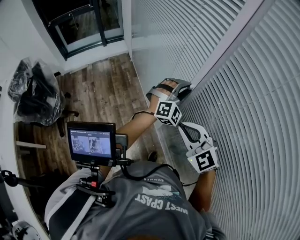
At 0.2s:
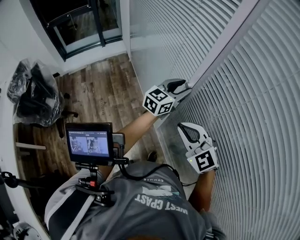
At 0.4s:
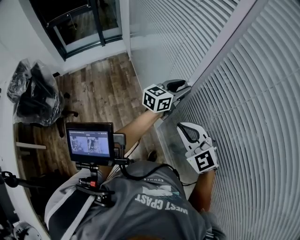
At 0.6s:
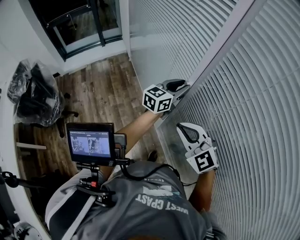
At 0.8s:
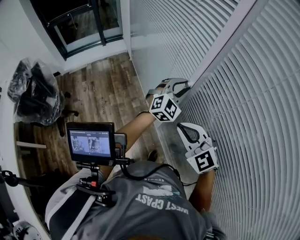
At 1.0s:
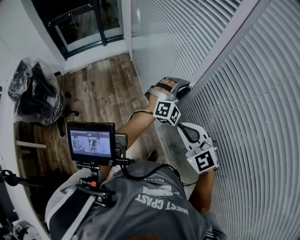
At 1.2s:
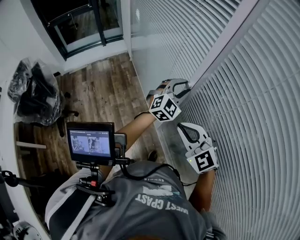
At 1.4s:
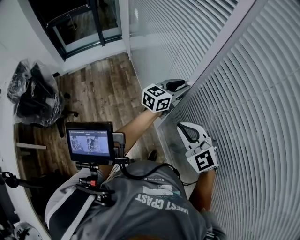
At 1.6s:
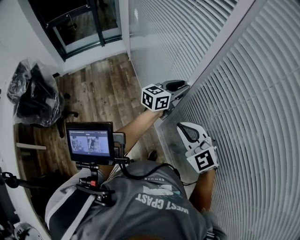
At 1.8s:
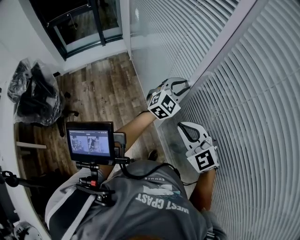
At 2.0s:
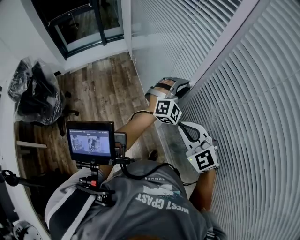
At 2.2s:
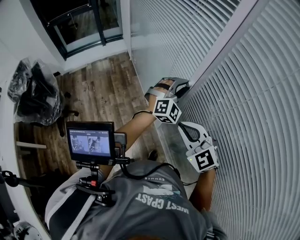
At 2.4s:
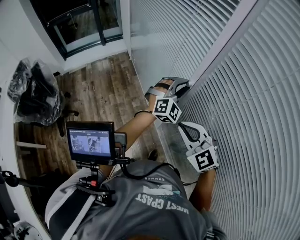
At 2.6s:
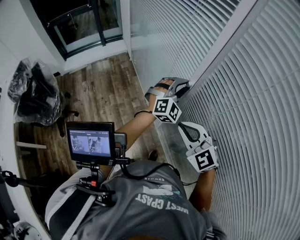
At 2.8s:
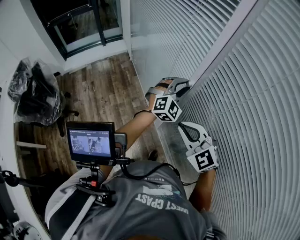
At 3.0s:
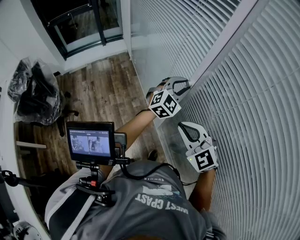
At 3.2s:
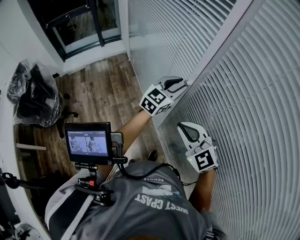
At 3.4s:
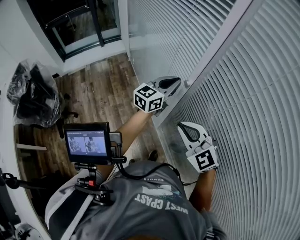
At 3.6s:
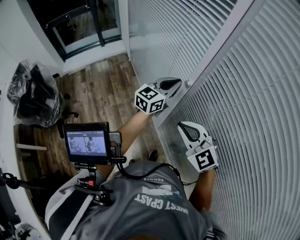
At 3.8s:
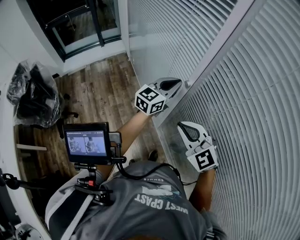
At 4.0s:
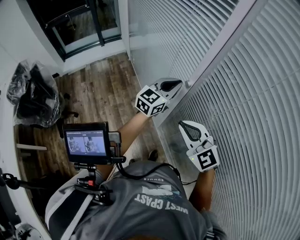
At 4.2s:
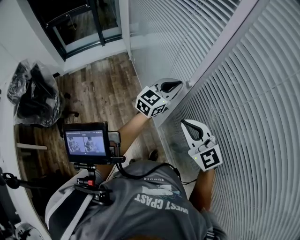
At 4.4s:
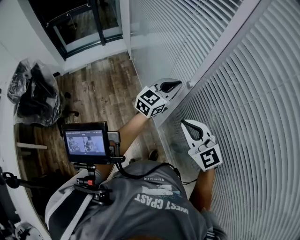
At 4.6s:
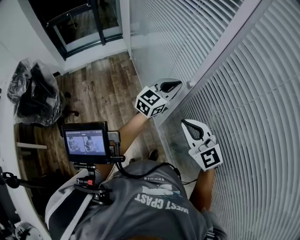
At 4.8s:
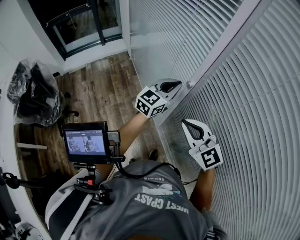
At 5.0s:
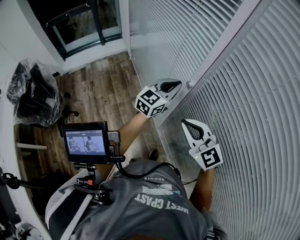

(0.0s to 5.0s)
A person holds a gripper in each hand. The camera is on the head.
0.0s - 1.6s: The left gripper twists approximately 80 degrees counterclockwise, seen from behind.
1.6s - 3.4s: The left gripper closes its fingers.
3.4s - 5.0s: The grippers stay close to where they were, moving slightly.

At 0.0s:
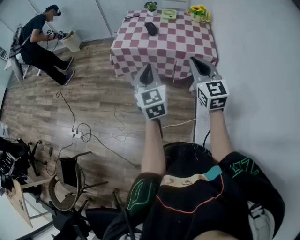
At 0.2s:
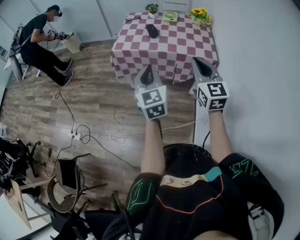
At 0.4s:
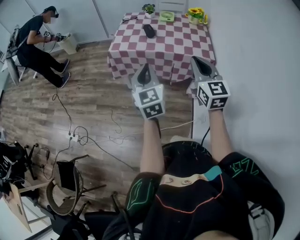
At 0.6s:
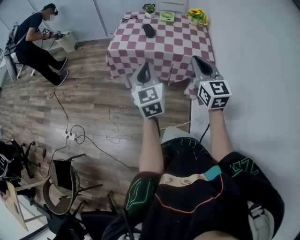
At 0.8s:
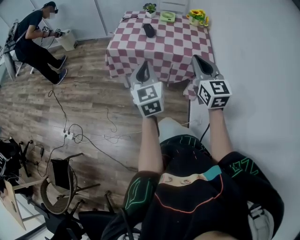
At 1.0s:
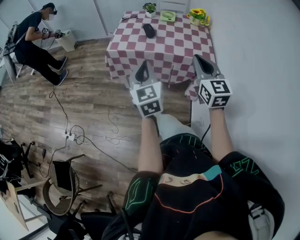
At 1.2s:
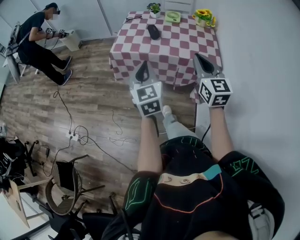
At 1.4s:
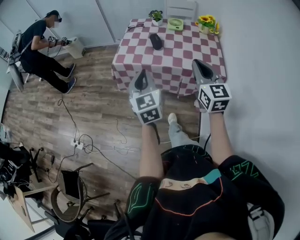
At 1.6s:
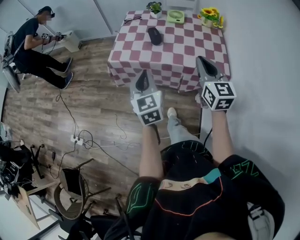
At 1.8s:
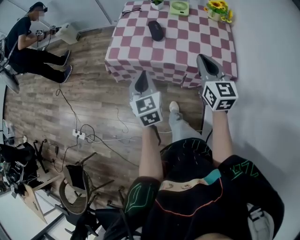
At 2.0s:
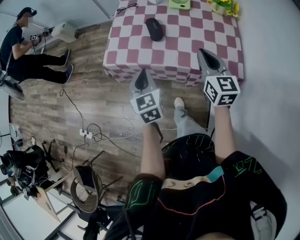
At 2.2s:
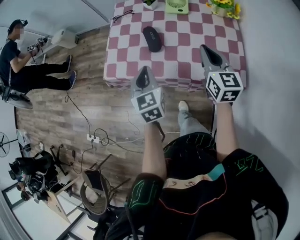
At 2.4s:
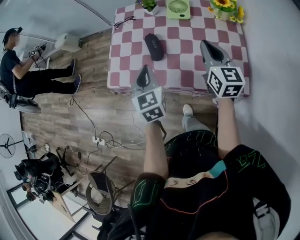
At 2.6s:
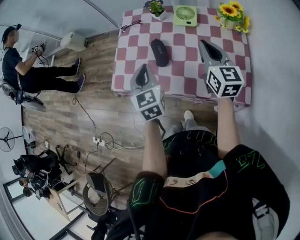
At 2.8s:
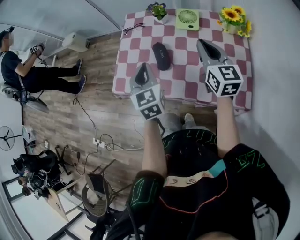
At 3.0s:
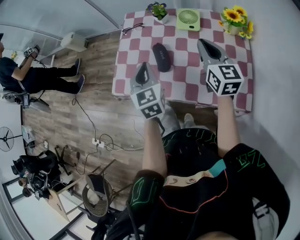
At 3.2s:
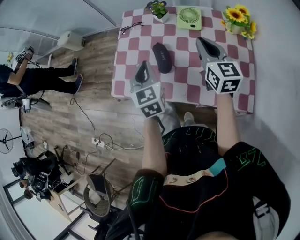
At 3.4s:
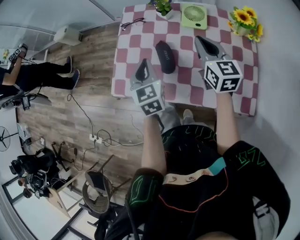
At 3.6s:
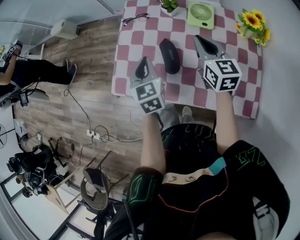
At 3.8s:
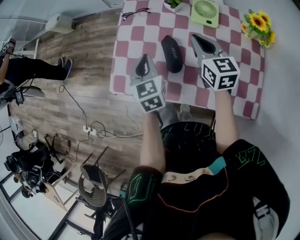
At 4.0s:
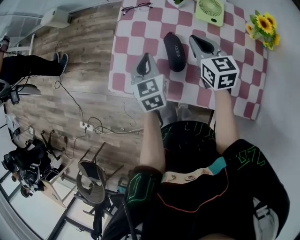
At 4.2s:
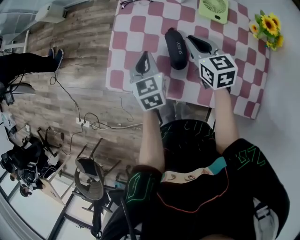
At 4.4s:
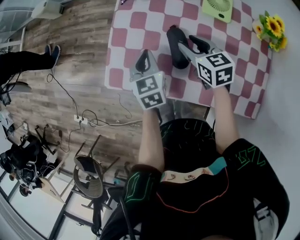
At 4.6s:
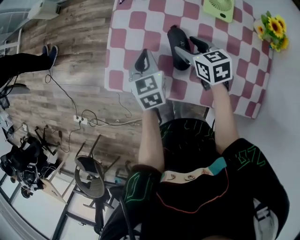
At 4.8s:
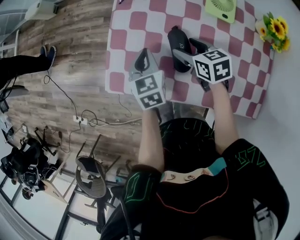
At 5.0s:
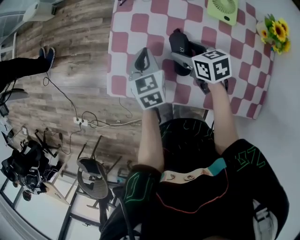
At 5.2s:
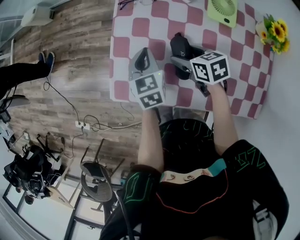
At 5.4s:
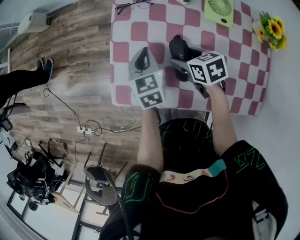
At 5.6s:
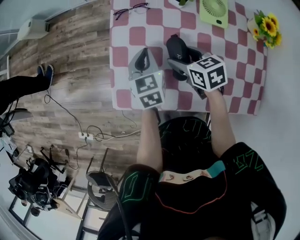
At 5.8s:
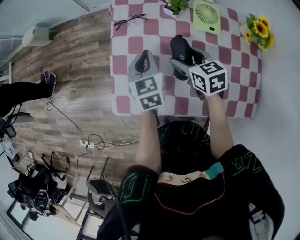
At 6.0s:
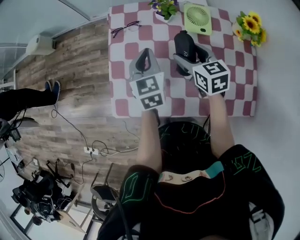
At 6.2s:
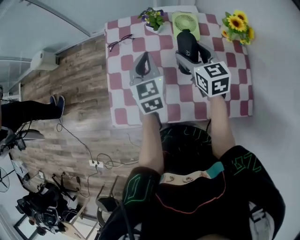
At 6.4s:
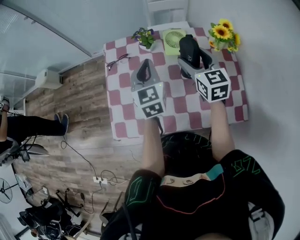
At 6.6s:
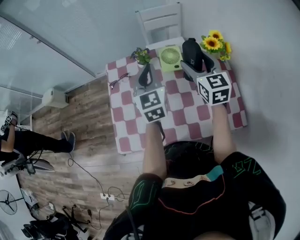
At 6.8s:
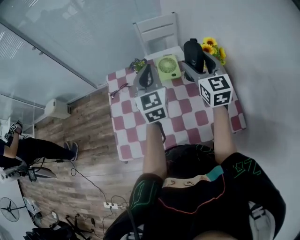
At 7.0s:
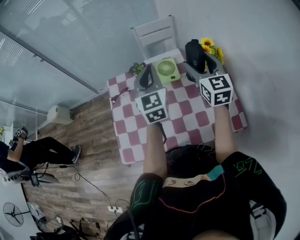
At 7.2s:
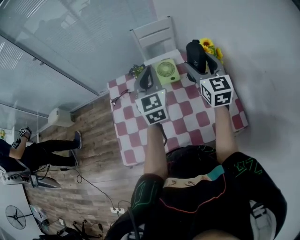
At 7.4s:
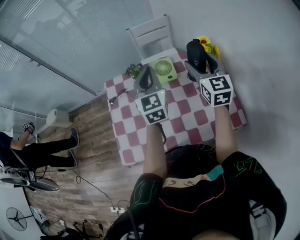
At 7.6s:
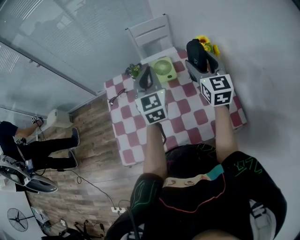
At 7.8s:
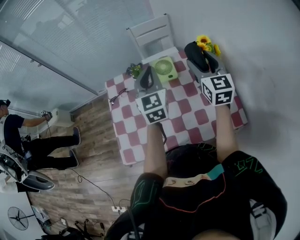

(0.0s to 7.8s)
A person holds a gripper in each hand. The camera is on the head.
0.0s - 1.6s: Both grippers move forward, roughly 20 cm.
1.6s - 3.2s: Both grippers travel together forward, some 30 cm.
3.2s - 4.6s: The left gripper shifts approximately 15 cm downward, forward and to the left. The right gripper heads downward, to the left and forward, covering approximately 25 cm, points its fingers about 30 degrees further downward, and opens.
4.6s - 6.2s: The right gripper goes about 10 cm upward, and changes its angle by approximately 30 degrees. The left gripper changes place by about 15 cm, and swivels roughly 20 degrees.
6.2s - 7.8s: The two grippers go approximately 20 cm to the right and upward. The right gripper turns by roughly 30 degrees. Meanwhile the left gripper rotates some 20 degrees.

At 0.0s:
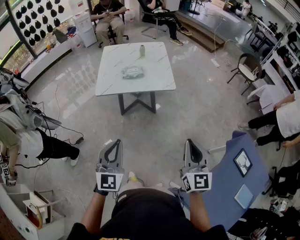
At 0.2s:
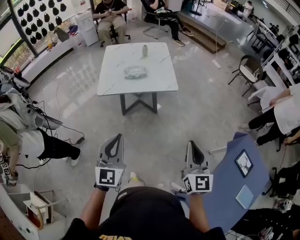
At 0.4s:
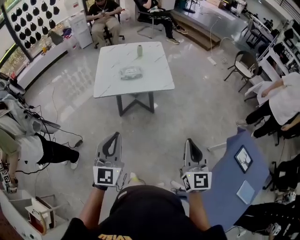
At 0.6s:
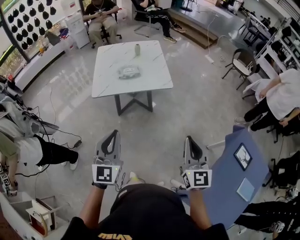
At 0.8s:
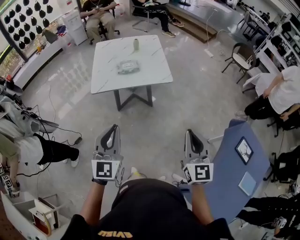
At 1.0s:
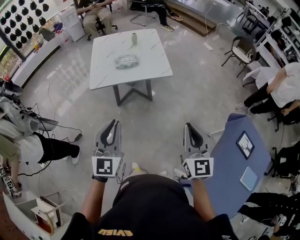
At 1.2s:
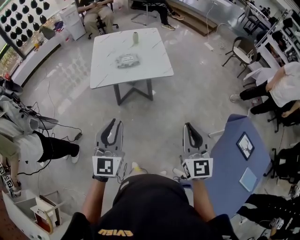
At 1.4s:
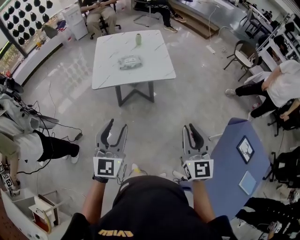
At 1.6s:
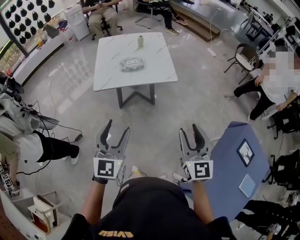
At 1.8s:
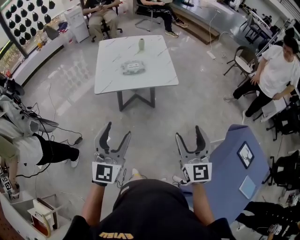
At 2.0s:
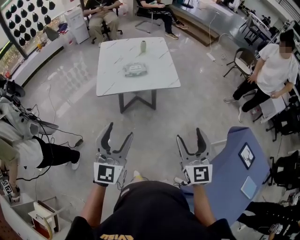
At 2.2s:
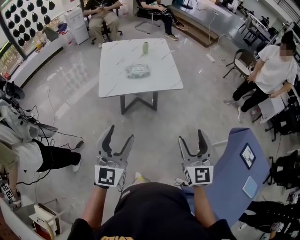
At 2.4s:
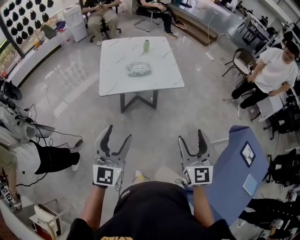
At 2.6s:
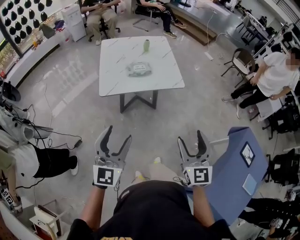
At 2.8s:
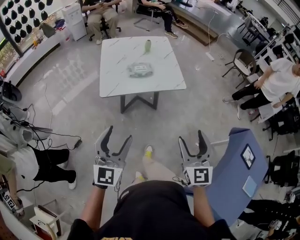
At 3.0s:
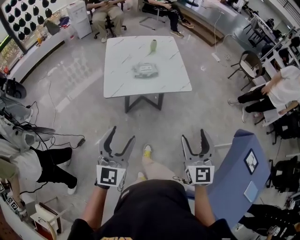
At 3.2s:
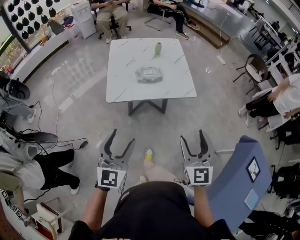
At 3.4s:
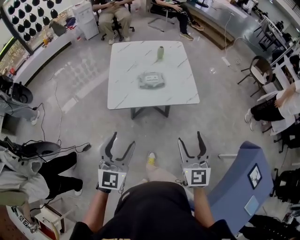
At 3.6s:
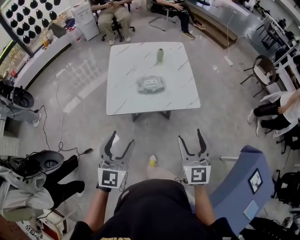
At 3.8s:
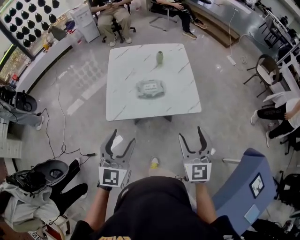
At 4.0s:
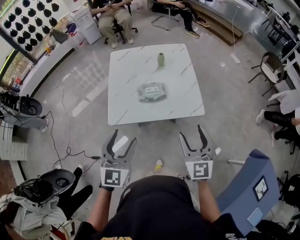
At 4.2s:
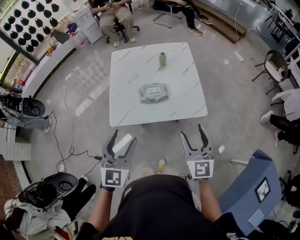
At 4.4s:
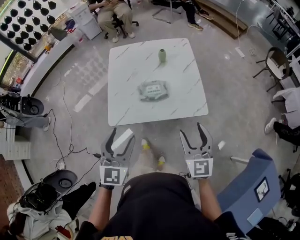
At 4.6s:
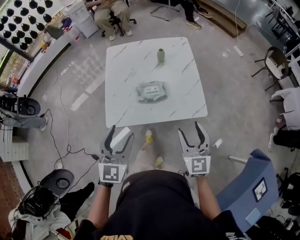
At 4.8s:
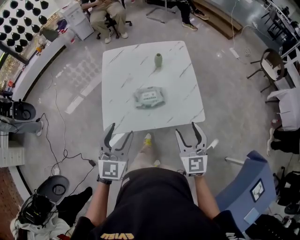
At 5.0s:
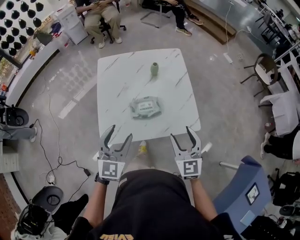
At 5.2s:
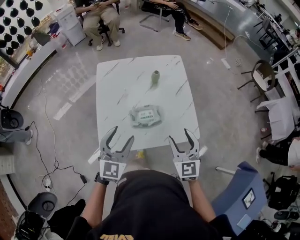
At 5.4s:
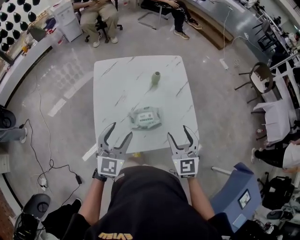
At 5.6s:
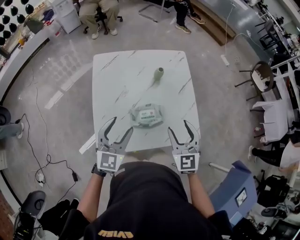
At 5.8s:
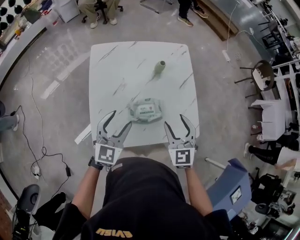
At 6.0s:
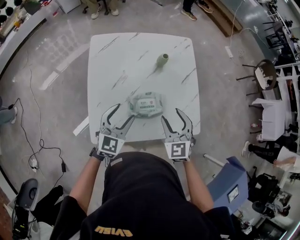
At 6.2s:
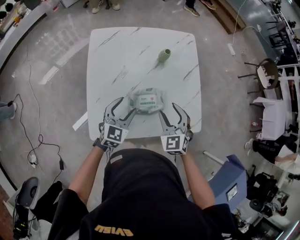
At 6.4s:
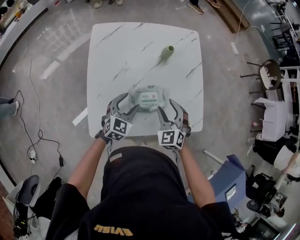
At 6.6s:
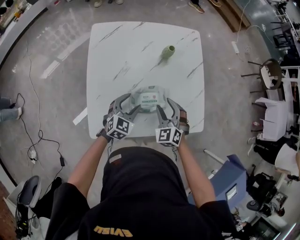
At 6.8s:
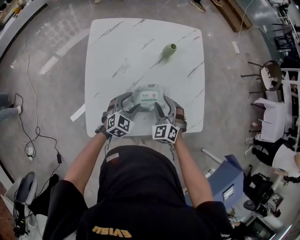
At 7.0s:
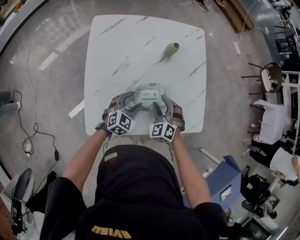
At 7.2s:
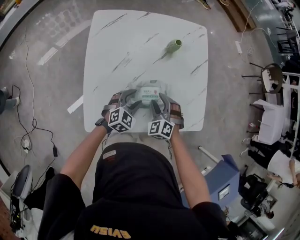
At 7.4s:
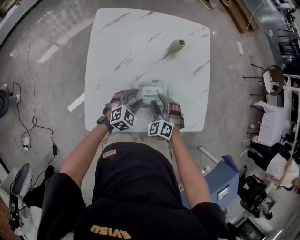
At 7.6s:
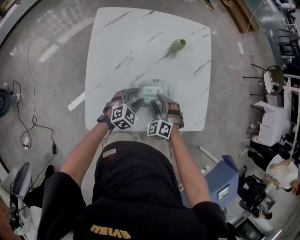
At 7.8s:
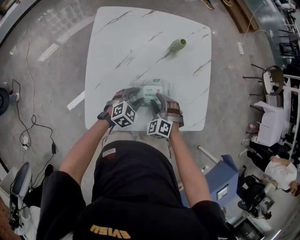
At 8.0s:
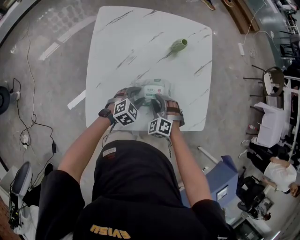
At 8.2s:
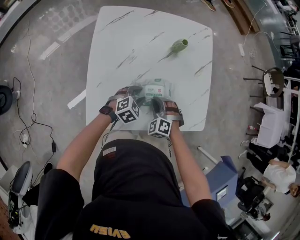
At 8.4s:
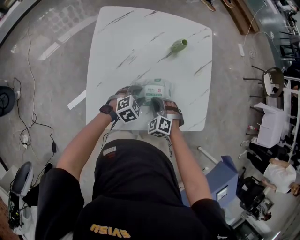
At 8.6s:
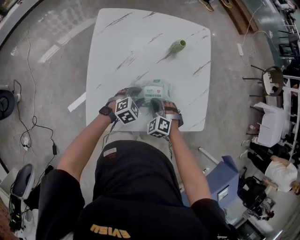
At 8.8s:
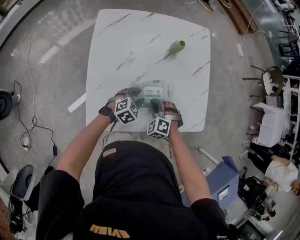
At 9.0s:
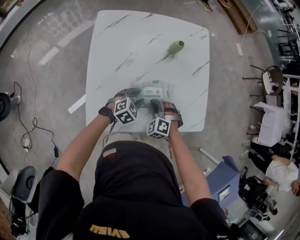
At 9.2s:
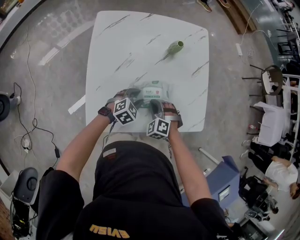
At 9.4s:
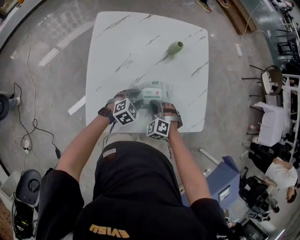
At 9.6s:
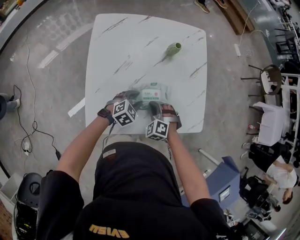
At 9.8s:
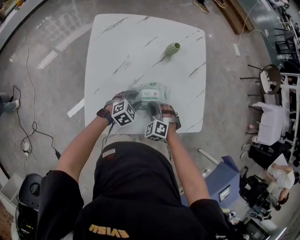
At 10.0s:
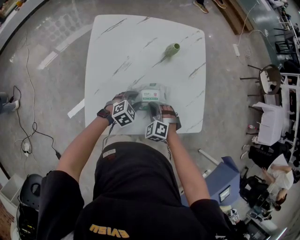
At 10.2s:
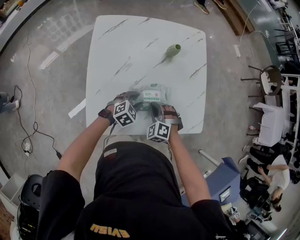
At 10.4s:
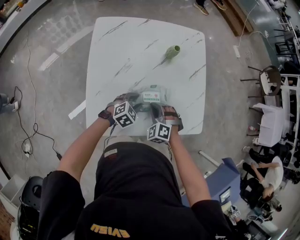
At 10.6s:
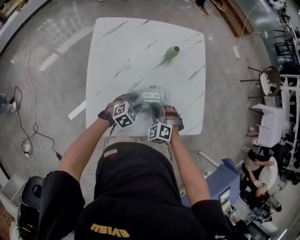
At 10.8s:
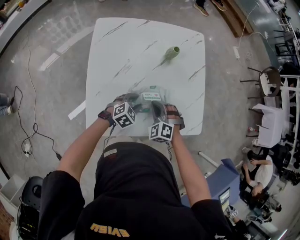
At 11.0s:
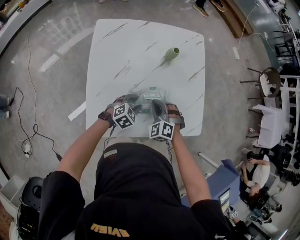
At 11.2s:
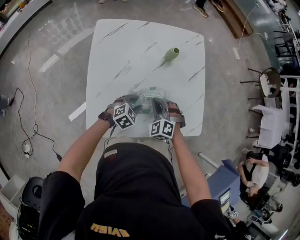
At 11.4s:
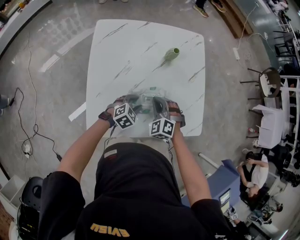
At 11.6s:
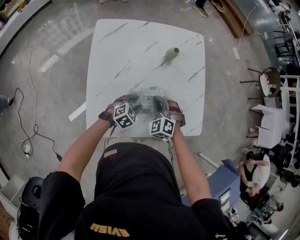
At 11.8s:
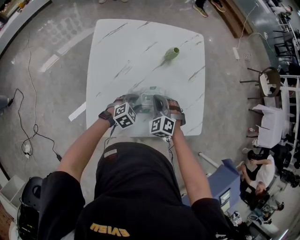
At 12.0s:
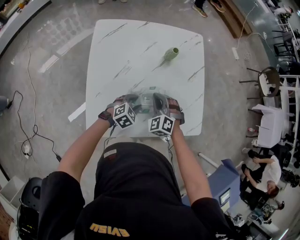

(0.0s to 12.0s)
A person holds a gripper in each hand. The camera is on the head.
0.0s - 1.6s: The left gripper shifts about 10 cm forward and to the left, and opens up; the right gripper moves to the left, approximately 10 cm, and opens up.
1.6s - 3.0s: The two grippers go roughly 15 cm to the left and forward.
3.0s - 4.4s: The two grippers go roughly 30 cm forward.
4.4s - 6.0s: The right gripper shifts some 30 cm forward, to the left and downward, and swivels about 30 degrees, while the left gripper shifts approximately 35 cm forward and downward.
6.0s - 7.6s: Both grippers travel together downward, some 20 cm. The right gripper swivels some 30 degrees, while the left gripper swivels some 30 degrees.
7.6s - 9.0s: The right gripper closes.
9.0s - 10.4s: The grippers stay close to where they were, moving slightly.
10.4s - 12.0s: The right gripper travels forward by roughly 5 cm.
